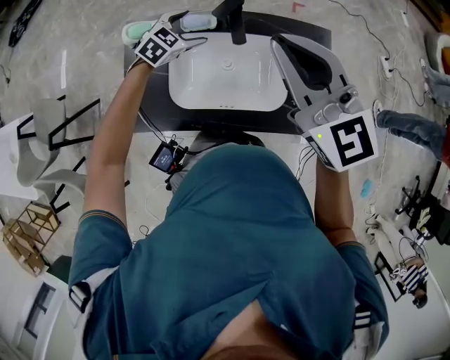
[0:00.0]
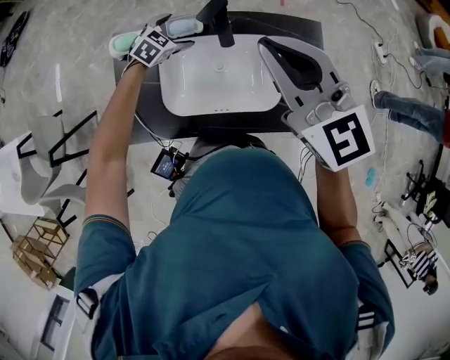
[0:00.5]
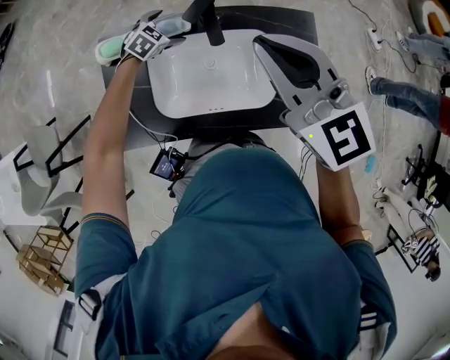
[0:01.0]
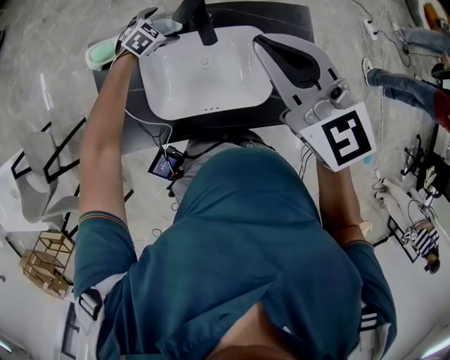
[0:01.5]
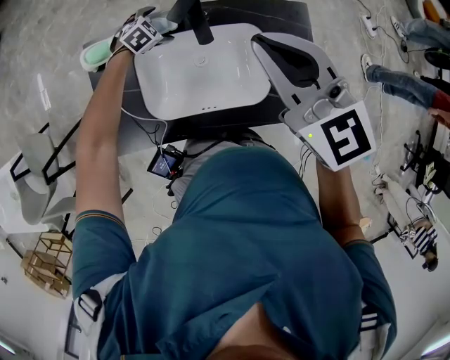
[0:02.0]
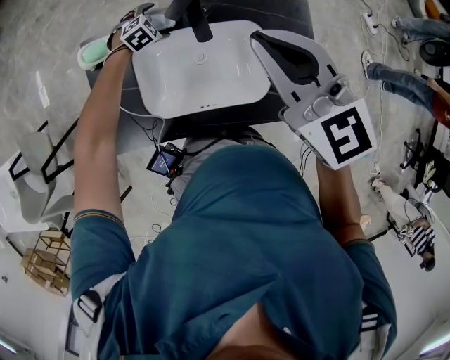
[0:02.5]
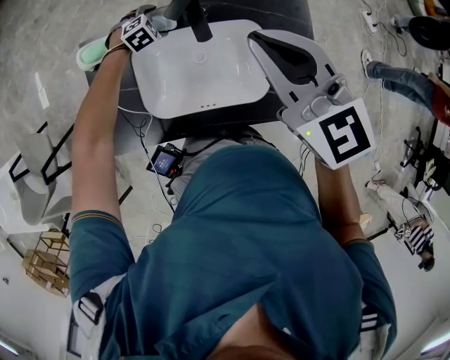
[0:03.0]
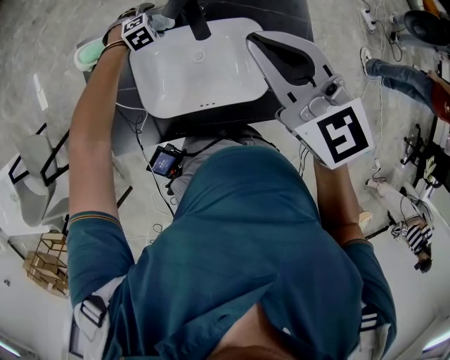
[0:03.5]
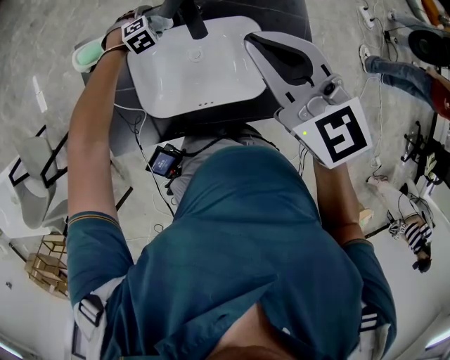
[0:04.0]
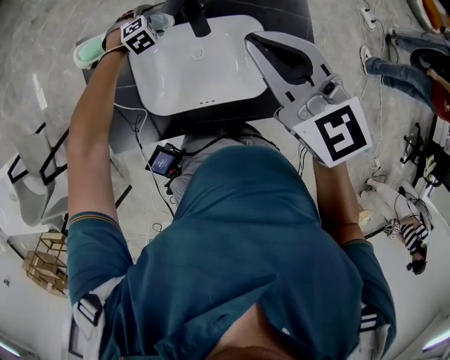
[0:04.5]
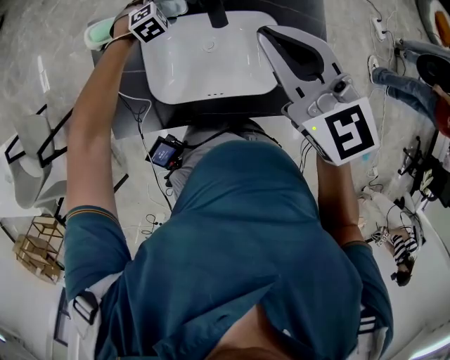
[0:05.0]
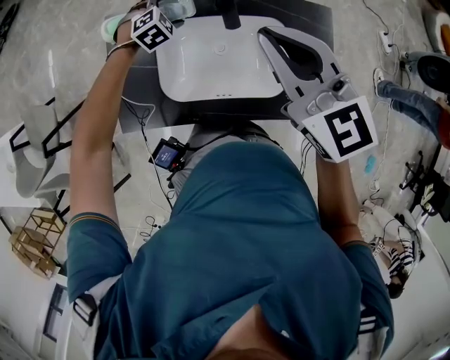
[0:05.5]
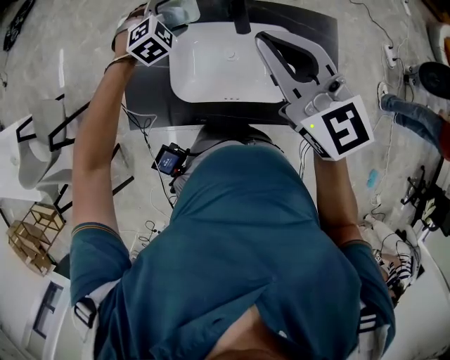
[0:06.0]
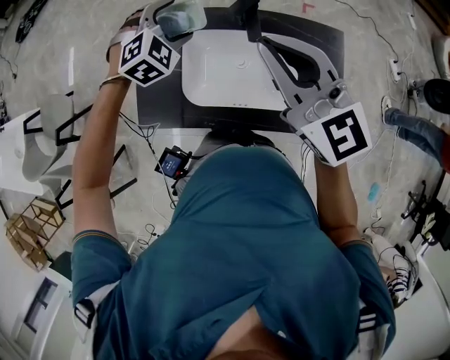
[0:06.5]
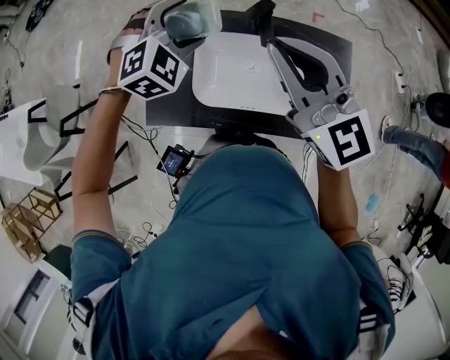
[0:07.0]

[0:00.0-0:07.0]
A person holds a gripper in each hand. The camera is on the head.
0:00.0 to 0:02.0: The right gripper goes roughly 5 cm downward, while the left gripper goes about 15 cm downward and forward, and turns by about 20 degrees.
0:02.0 to 0:05.0: There are only small adjustments of the grippers.
0:05.0 to 0:07.0: The left gripper travels upward by approximately 30 cm, and rotates some 20 degrees, while the right gripper heads upward and to the left, covering roughly 10 cm.

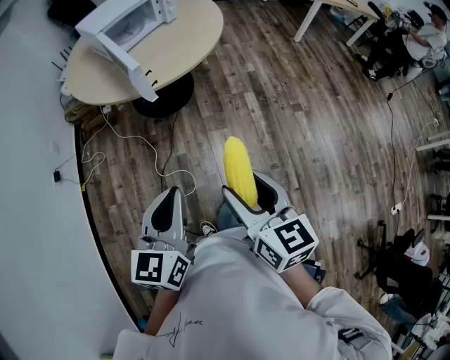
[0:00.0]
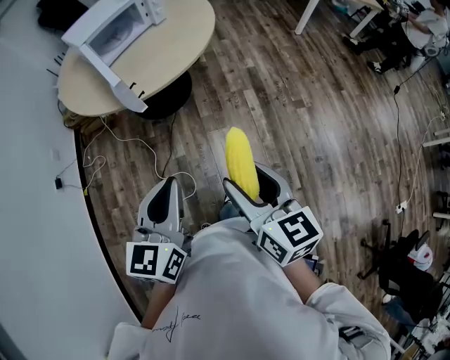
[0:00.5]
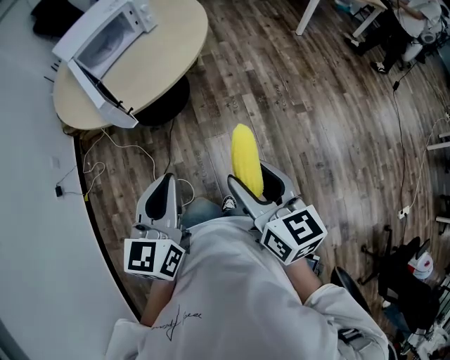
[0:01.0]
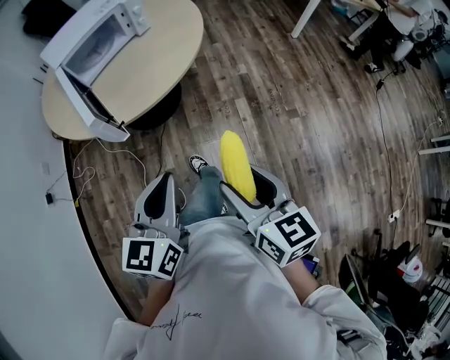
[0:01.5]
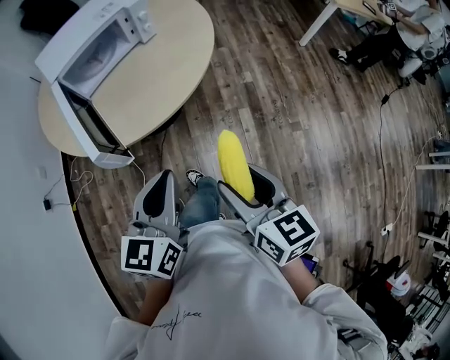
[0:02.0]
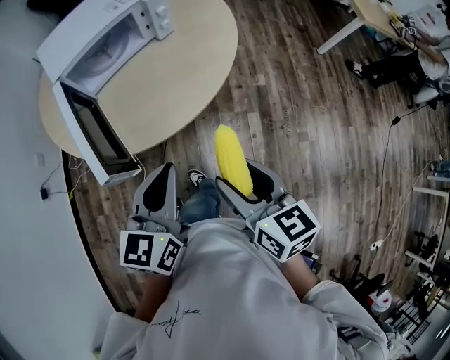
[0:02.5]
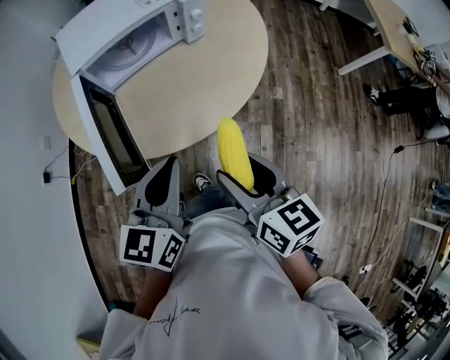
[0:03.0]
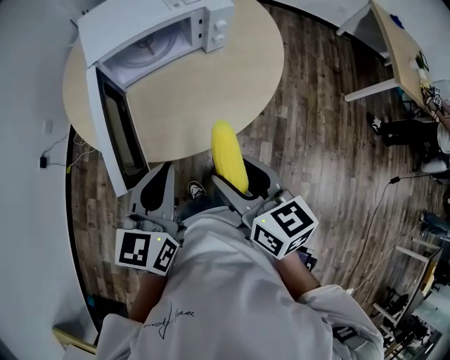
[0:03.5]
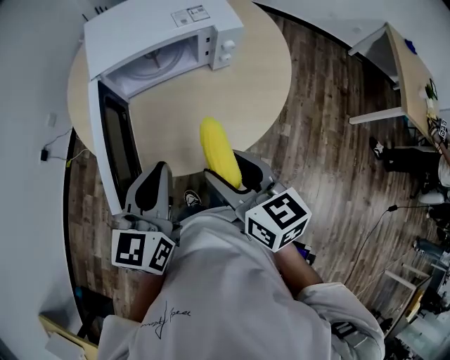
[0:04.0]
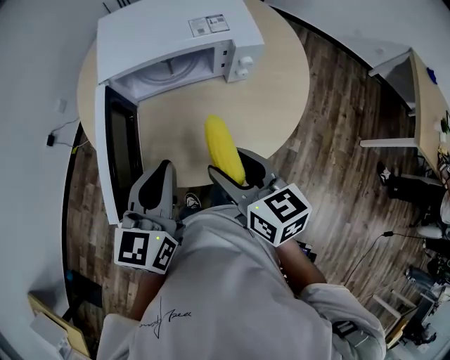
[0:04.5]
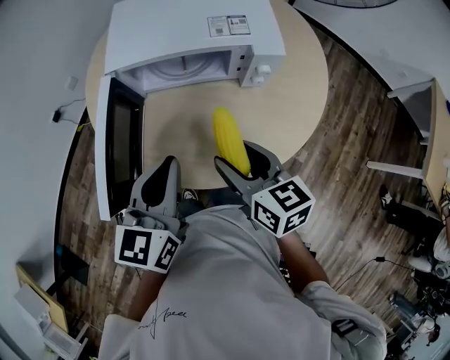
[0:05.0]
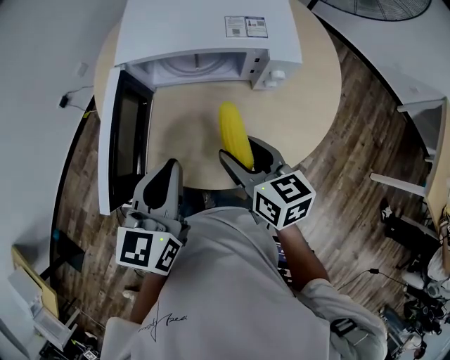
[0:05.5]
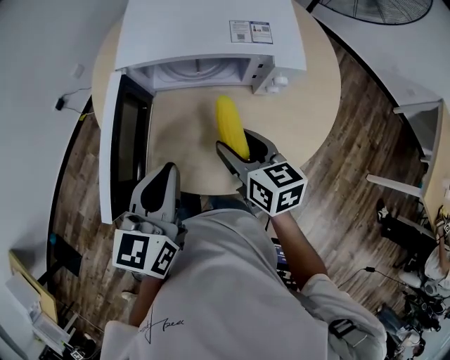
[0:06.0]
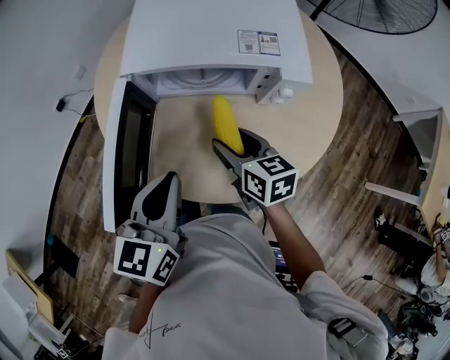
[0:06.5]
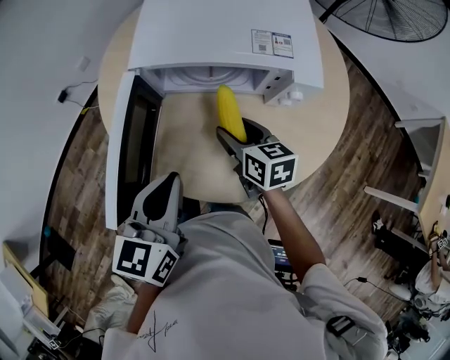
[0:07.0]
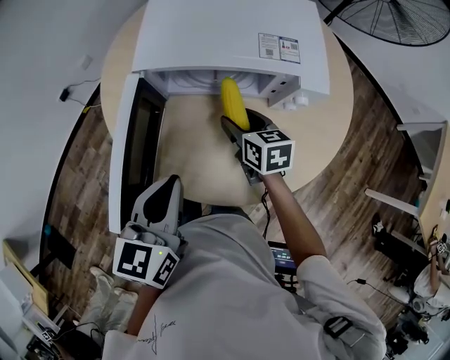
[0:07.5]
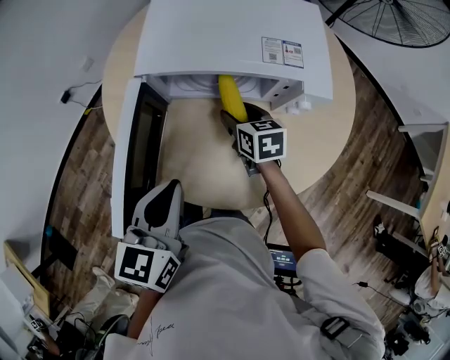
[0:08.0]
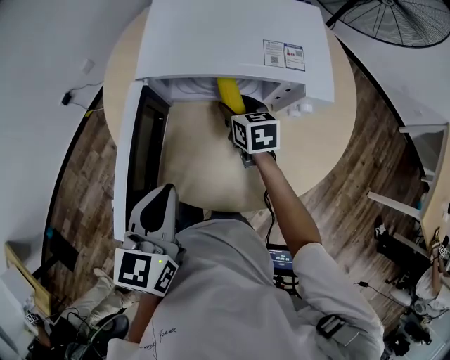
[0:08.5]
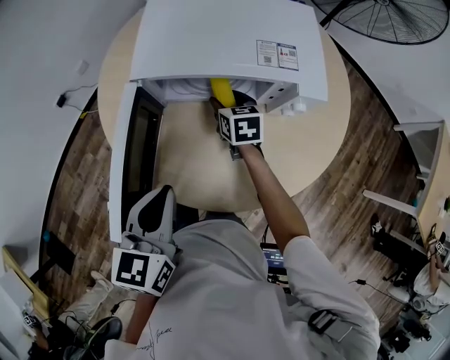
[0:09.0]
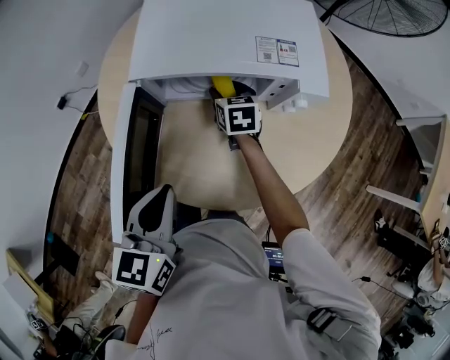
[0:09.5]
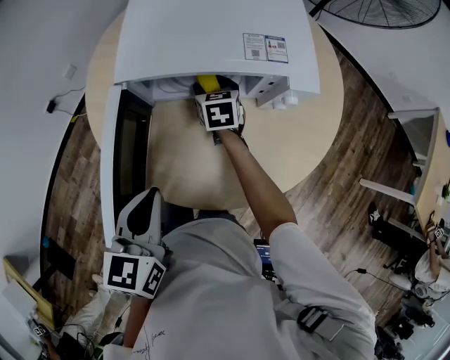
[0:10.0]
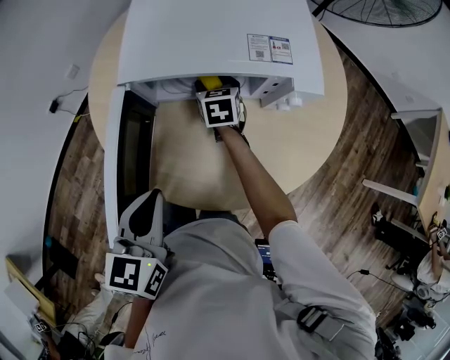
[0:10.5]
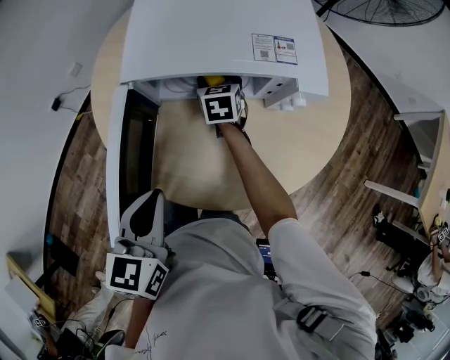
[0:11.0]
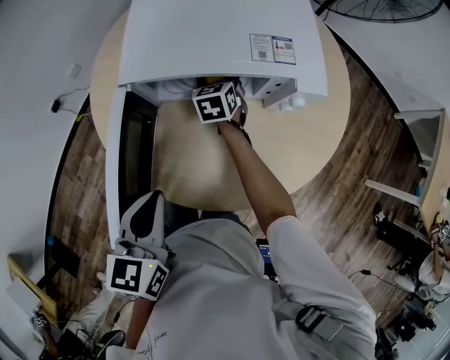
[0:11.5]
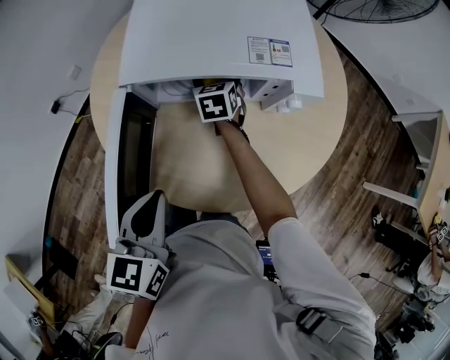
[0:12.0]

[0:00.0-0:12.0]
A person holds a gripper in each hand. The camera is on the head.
0:00.0 to 0:02.0: Both grippers move forward, approximately 30 cm.
0:02.0 to 0:04.0: The right gripper shifts by some 30 cm, and changes its angle by approximately 30 degrees. The left gripper moves approximately 25 cm, and rotates approximately 30 degrees.
0:04.0 to 0:06.0: The left gripper moves forward, some 10 cm; the right gripper heads forward and downward, covering some 20 cm.
0:06.0 to 0:08.0: The right gripper is displaced forward and downward by some 15 cm.
0:08.0 to 0:10.0: The right gripper is displaced forward by approximately 10 cm.
0:10.0 to 0:12.0: The grippers stay close to where they were, moving slightly.

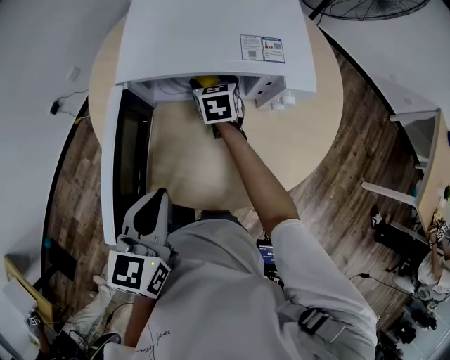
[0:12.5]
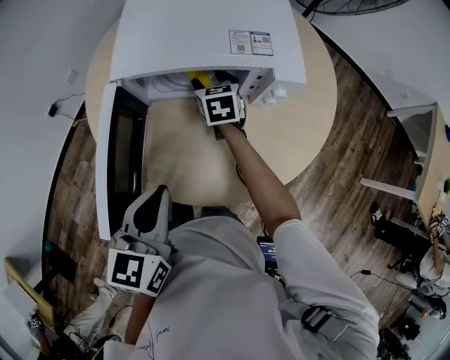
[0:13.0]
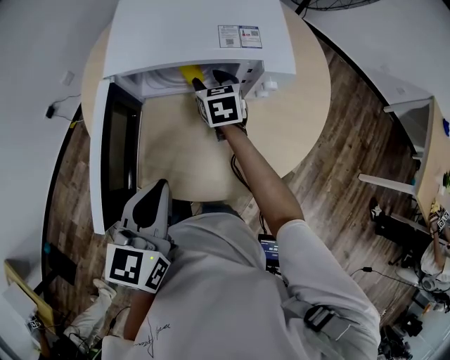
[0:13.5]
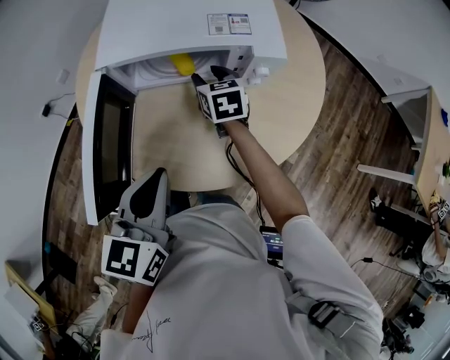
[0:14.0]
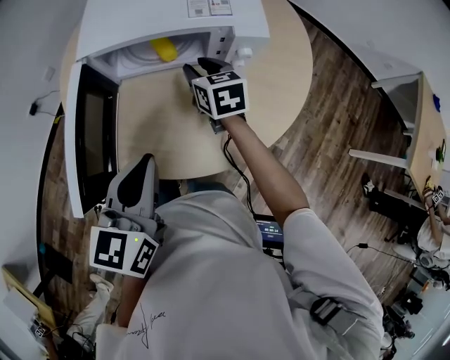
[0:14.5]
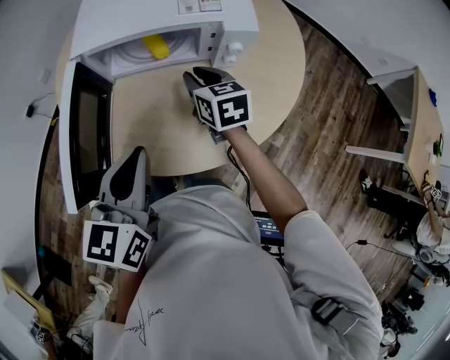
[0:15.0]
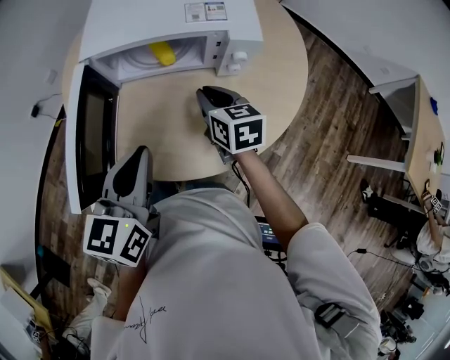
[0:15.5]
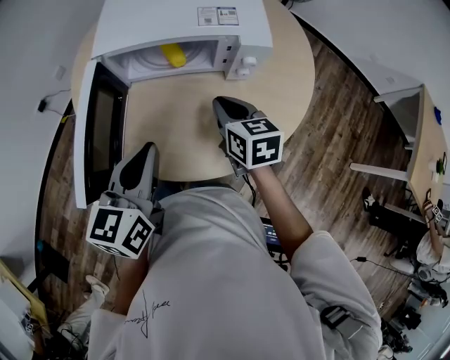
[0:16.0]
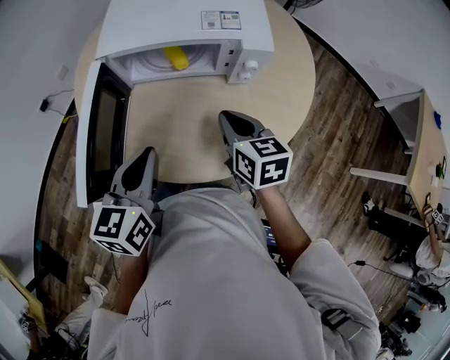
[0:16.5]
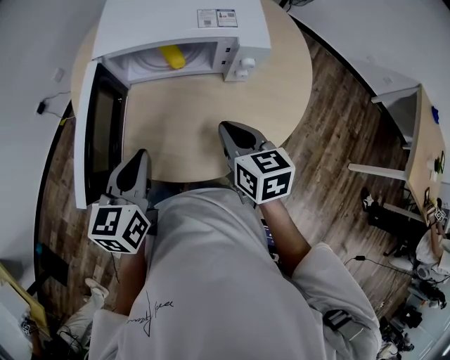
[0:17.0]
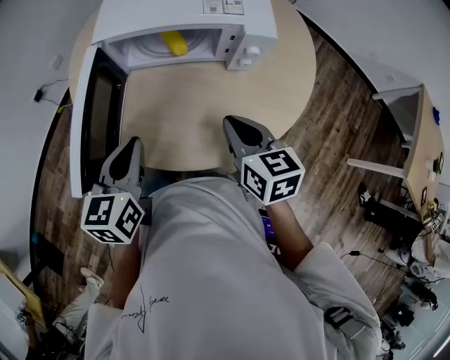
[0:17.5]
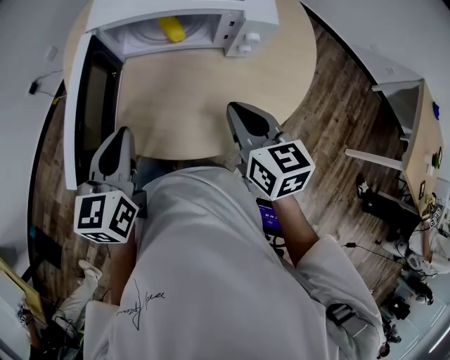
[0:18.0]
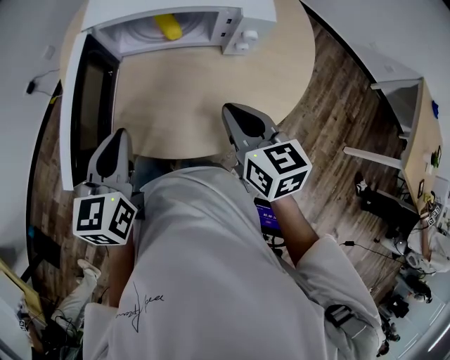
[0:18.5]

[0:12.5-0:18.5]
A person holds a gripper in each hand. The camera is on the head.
0:12.5 to 0:14.5: The right gripper heads backward, to the right and upward, covering about 15 cm, and closes; the left gripper travels to the right by approximately 5 cm.
0:14.5 to 0:16.5: The right gripper shifts roughly 15 cm backward, and closes its fingers.
0:16.5 to 0:18.5: The right gripper heads backward, covering about 5 cm.

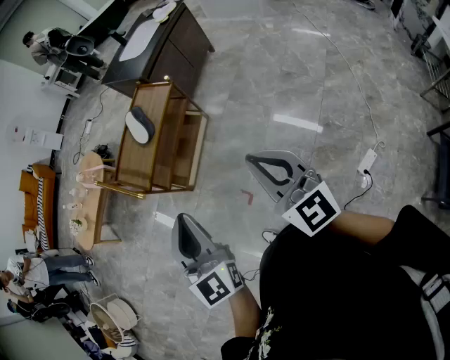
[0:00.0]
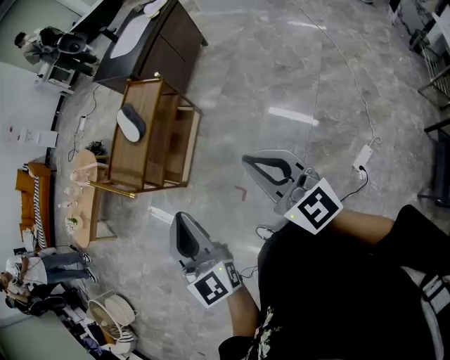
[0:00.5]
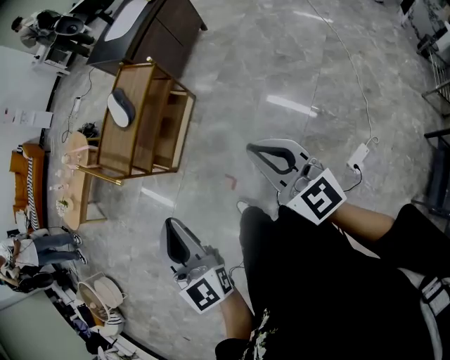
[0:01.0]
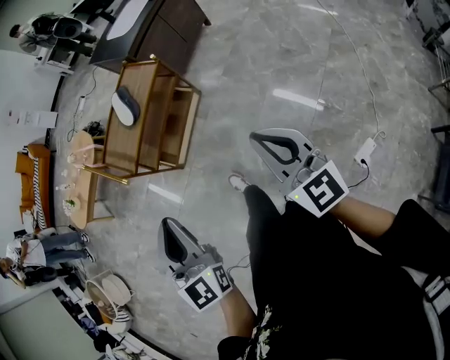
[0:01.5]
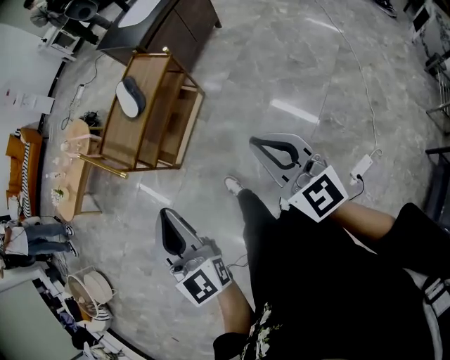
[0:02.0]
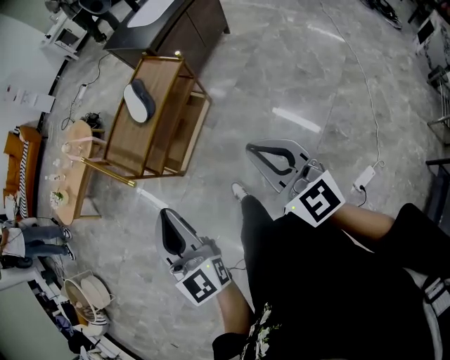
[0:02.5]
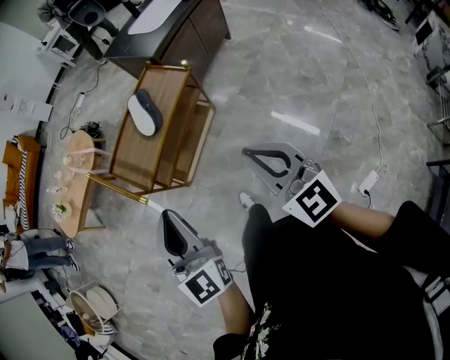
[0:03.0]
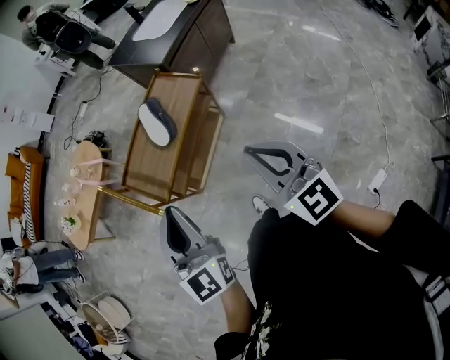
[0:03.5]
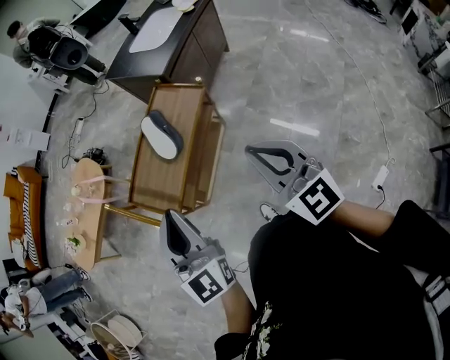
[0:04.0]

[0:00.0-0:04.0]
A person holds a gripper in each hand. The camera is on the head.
0:00.0 to 0:02.0: The right gripper changes place by roughly 5 cm.
0:02.0 to 0:04.0: The left gripper goes some 30 cm forward, while the right gripper moves forward and to the left, some 30 cm.
